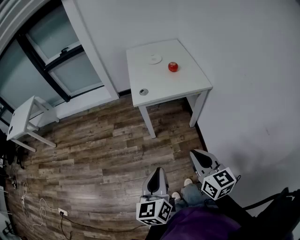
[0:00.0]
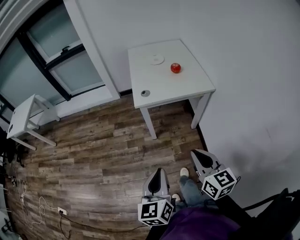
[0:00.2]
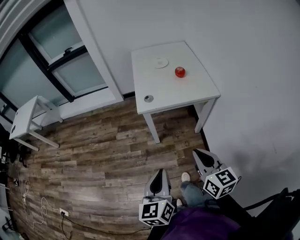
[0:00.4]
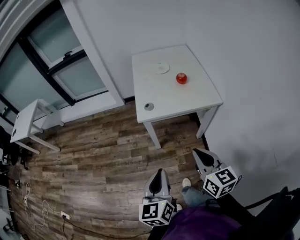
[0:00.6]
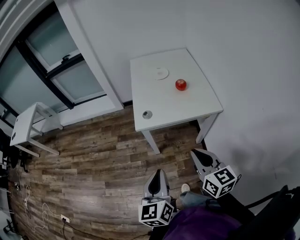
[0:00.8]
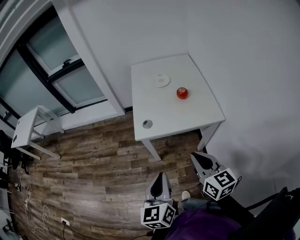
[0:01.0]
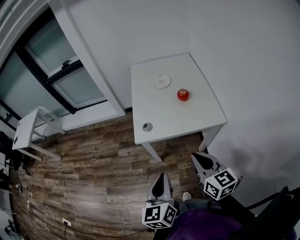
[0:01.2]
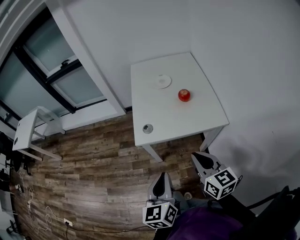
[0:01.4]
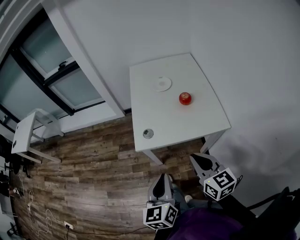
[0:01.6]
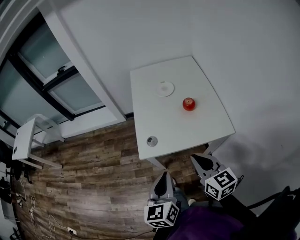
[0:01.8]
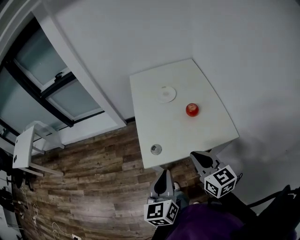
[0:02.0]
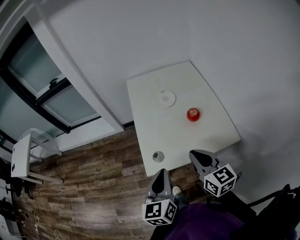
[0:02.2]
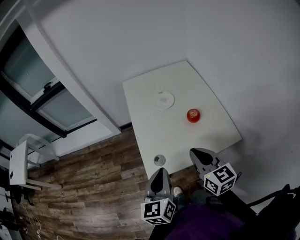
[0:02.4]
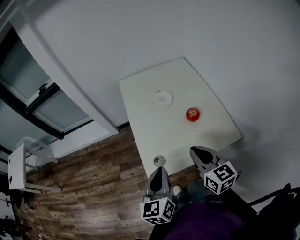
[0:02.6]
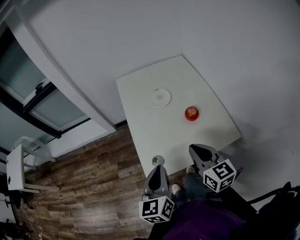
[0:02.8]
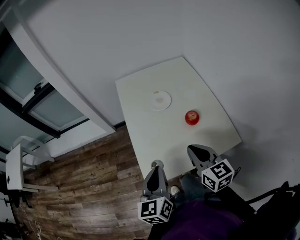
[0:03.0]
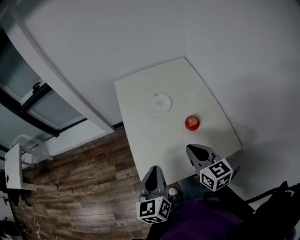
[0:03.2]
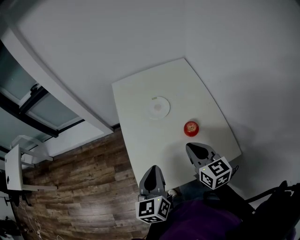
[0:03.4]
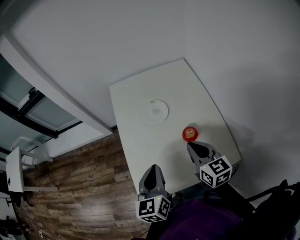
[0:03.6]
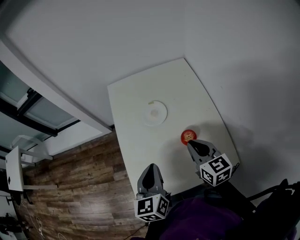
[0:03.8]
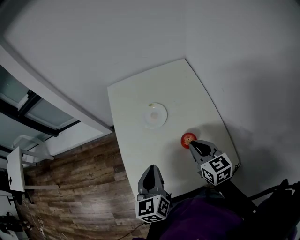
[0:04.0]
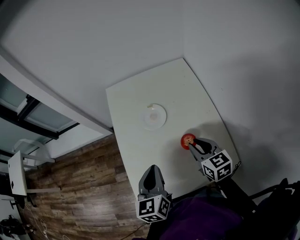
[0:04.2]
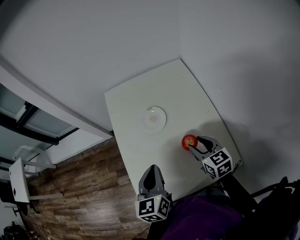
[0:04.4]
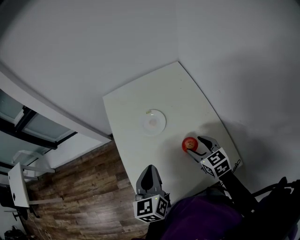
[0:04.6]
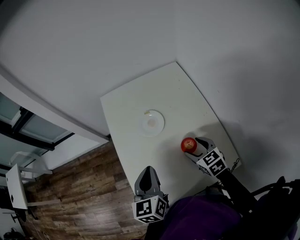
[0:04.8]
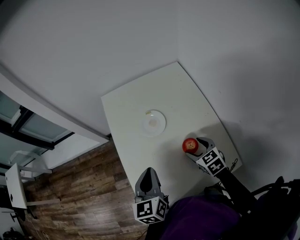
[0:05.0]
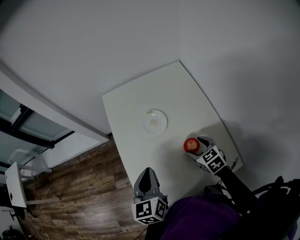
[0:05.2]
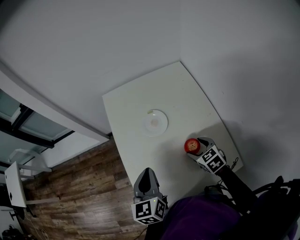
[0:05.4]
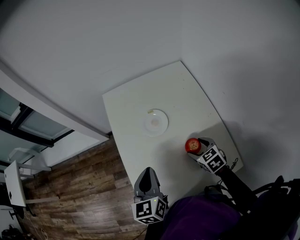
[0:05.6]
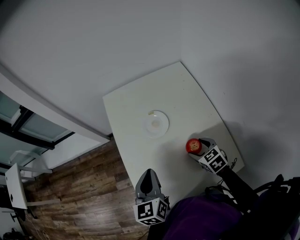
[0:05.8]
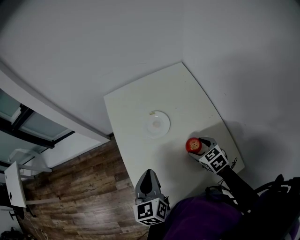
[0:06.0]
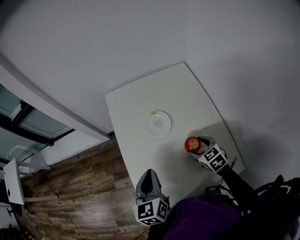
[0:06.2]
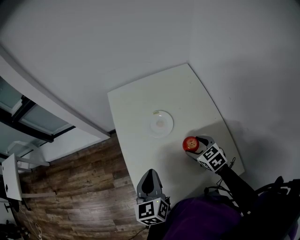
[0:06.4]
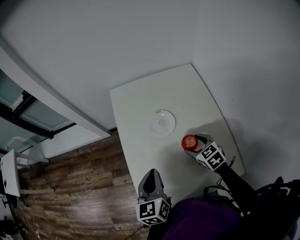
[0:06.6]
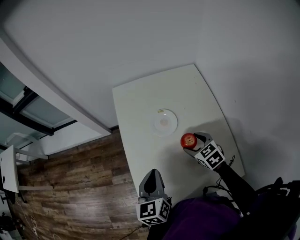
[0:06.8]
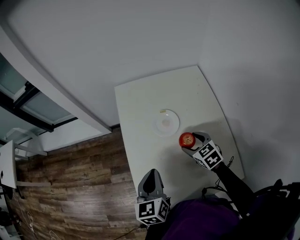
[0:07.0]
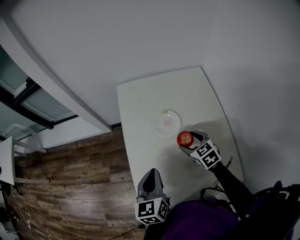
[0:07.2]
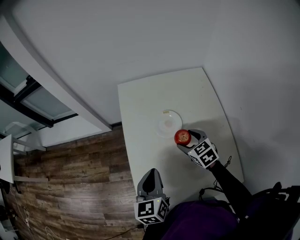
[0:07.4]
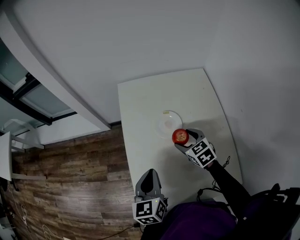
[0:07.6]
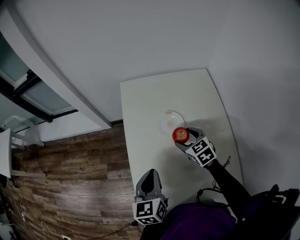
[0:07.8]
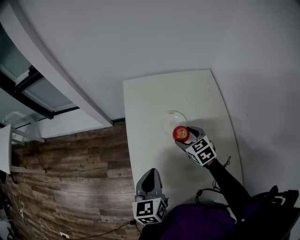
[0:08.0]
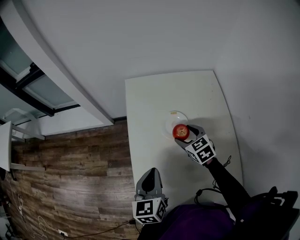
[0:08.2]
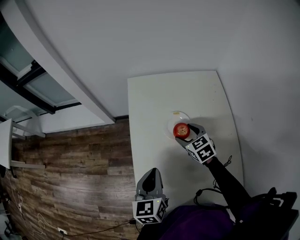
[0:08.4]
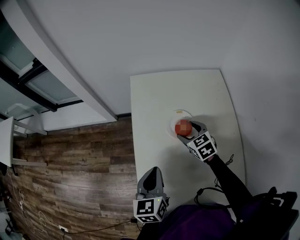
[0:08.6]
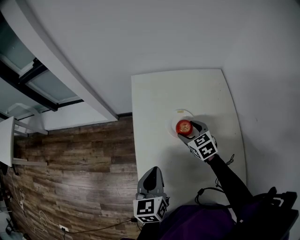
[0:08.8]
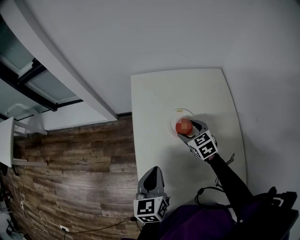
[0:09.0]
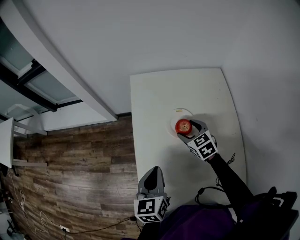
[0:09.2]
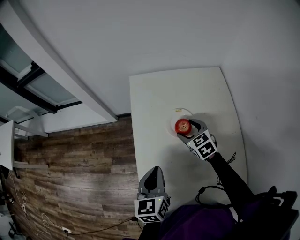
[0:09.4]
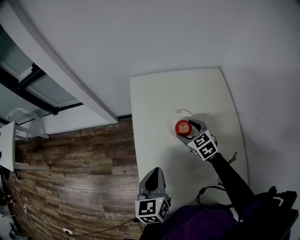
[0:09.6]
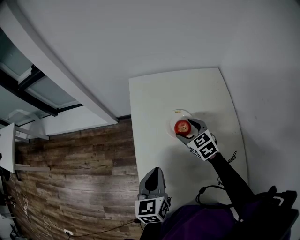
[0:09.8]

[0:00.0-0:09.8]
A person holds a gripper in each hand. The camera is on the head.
0:00.0 to 0:01.4: Both grippers travel together forward, about 25 cm.
0:01.4 to 0:02.8: The two grippers go some 25 cm forward.
0:02.8 to 0:04.2: The two grippers go approximately 20 cm forward and to the right.
0:04.2 to 0:05.6: The left gripper moves roughly 5 cm, while the right gripper goes approximately 10 cm downward, changes its angle by roughly 20 degrees, and opens.
0:05.6 to 0:07.0: The right gripper goes approximately 5 cm forward.
0:07.0 to 0:08.4: The right gripper is displaced forward and to the left by approximately 10 cm.
0:08.4 to 0:09.8: The grippers move only a little.

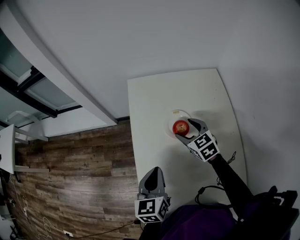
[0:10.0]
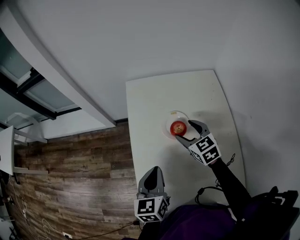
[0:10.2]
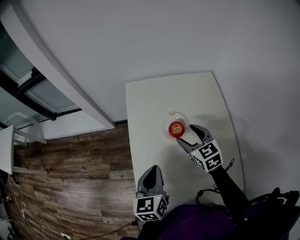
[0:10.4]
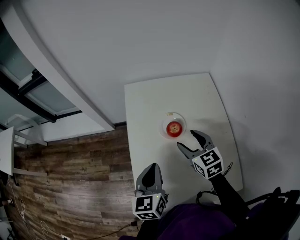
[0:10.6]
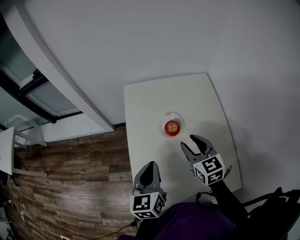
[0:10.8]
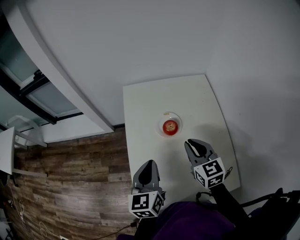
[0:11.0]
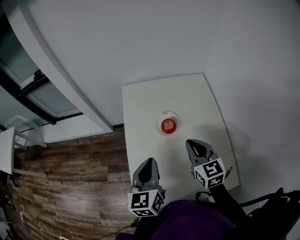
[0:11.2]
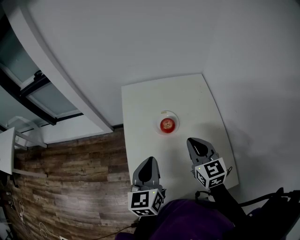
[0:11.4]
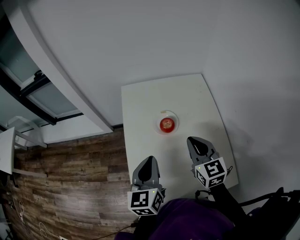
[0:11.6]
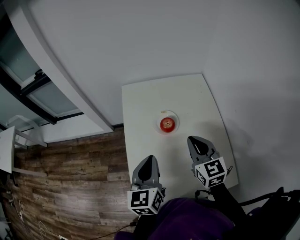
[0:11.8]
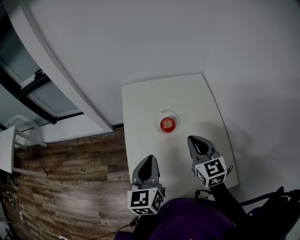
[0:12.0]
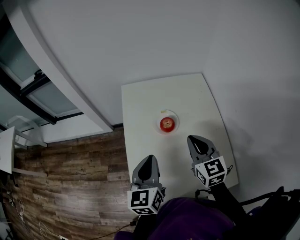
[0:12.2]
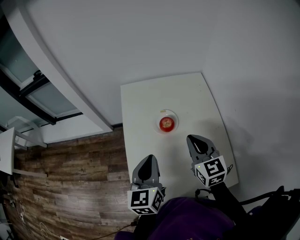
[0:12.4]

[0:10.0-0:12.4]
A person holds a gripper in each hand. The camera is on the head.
0:10.0 to 0:11.2: The left gripper goes roughly 5 cm upward, while the right gripper is displaced backward and upward by roughly 15 cm, turns by approximately 20 degrees, and closes up.
0:11.2 to 0:12.4: The grippers move only a little.

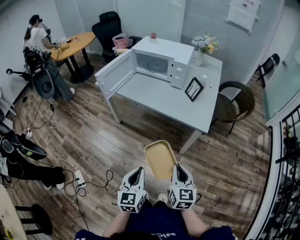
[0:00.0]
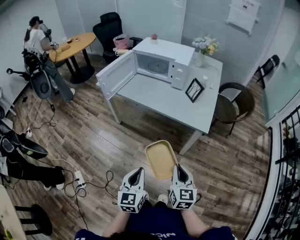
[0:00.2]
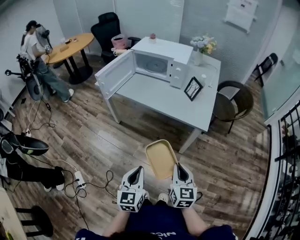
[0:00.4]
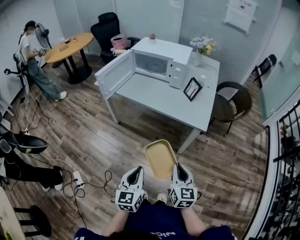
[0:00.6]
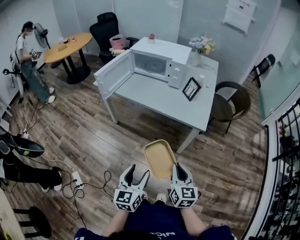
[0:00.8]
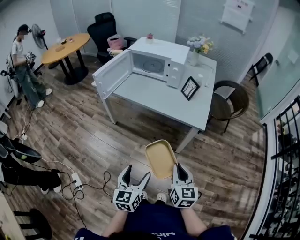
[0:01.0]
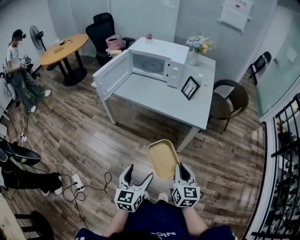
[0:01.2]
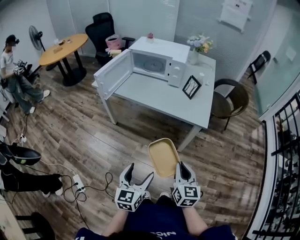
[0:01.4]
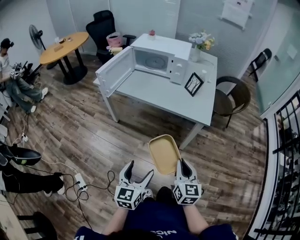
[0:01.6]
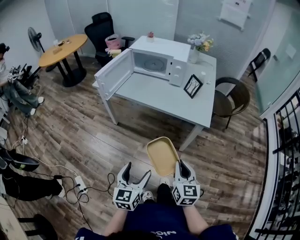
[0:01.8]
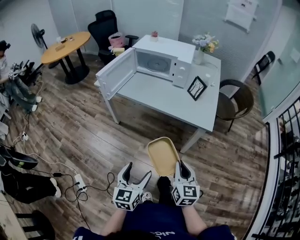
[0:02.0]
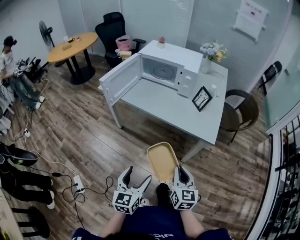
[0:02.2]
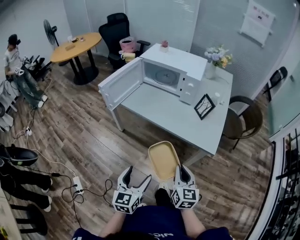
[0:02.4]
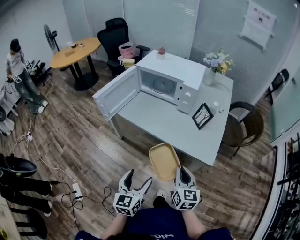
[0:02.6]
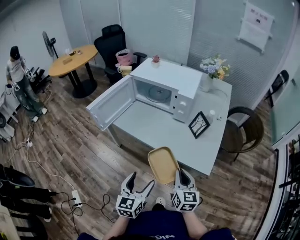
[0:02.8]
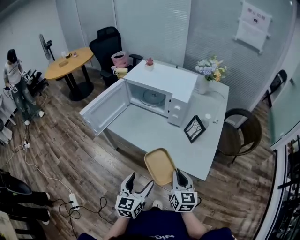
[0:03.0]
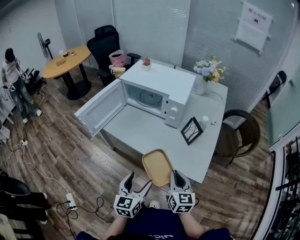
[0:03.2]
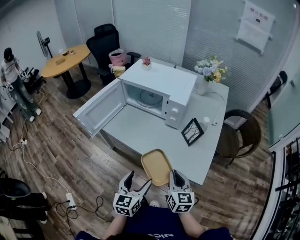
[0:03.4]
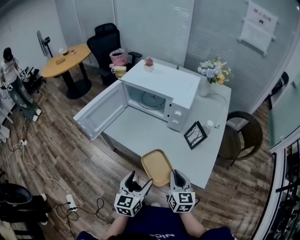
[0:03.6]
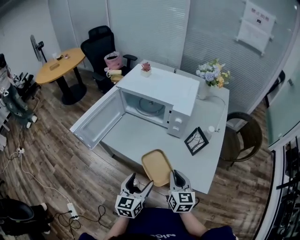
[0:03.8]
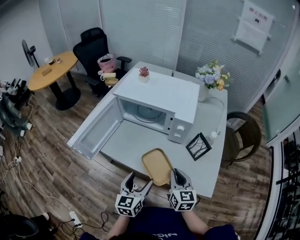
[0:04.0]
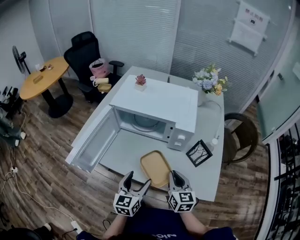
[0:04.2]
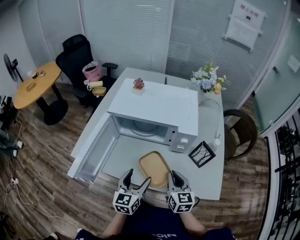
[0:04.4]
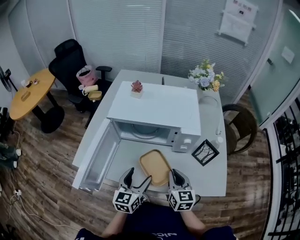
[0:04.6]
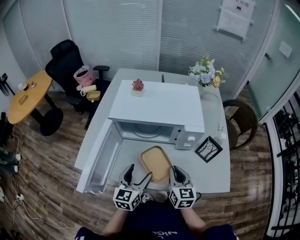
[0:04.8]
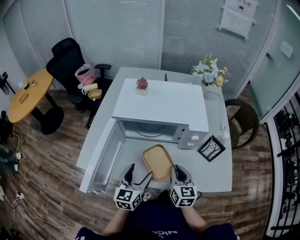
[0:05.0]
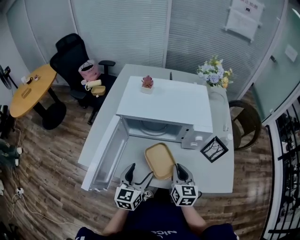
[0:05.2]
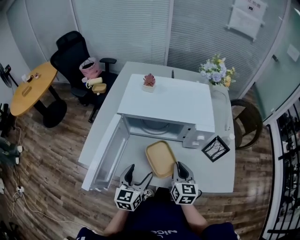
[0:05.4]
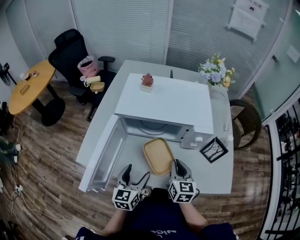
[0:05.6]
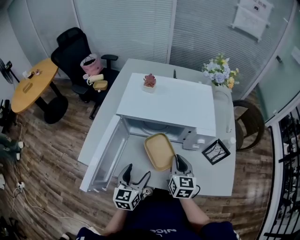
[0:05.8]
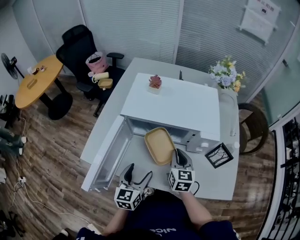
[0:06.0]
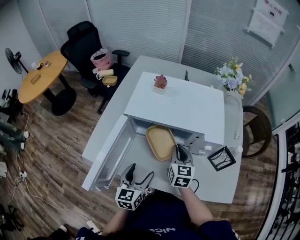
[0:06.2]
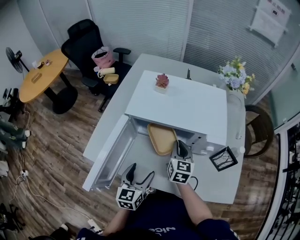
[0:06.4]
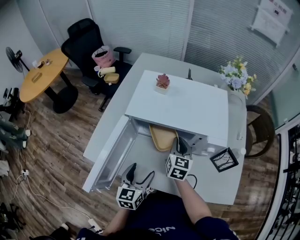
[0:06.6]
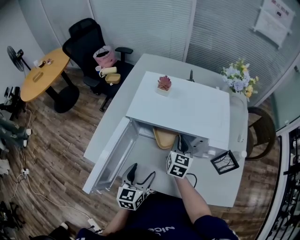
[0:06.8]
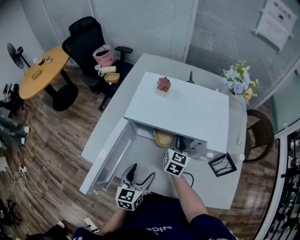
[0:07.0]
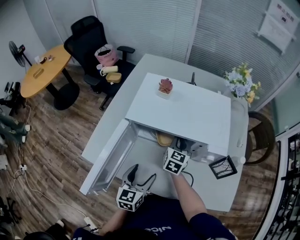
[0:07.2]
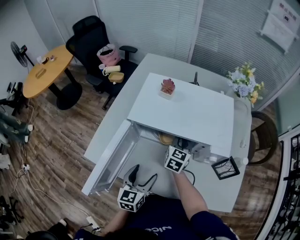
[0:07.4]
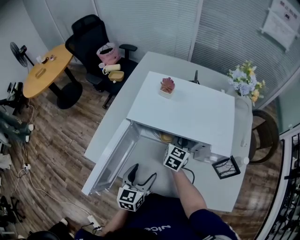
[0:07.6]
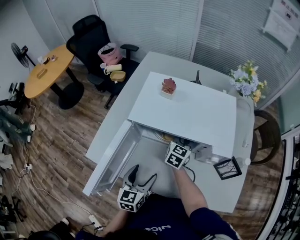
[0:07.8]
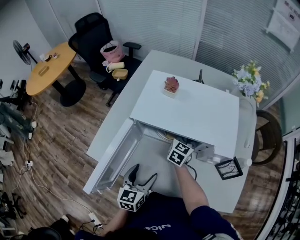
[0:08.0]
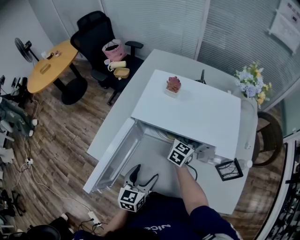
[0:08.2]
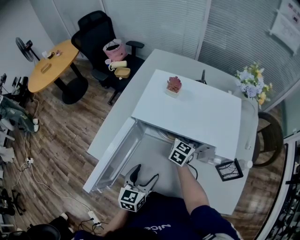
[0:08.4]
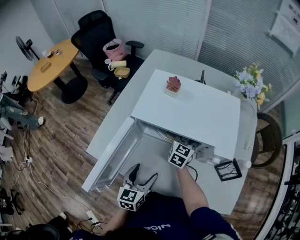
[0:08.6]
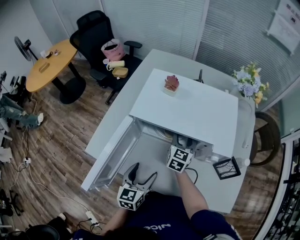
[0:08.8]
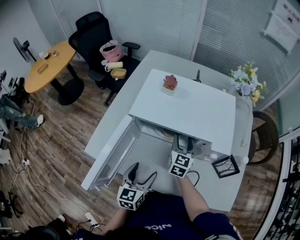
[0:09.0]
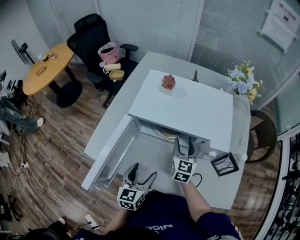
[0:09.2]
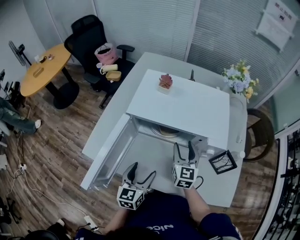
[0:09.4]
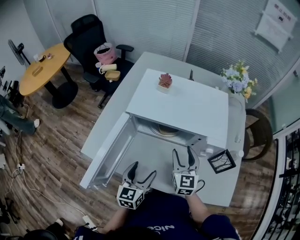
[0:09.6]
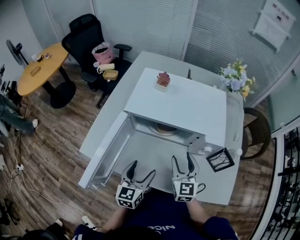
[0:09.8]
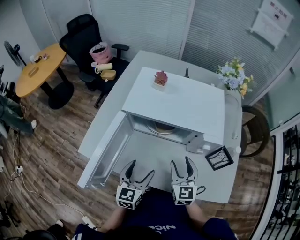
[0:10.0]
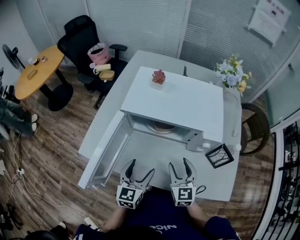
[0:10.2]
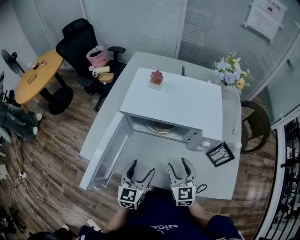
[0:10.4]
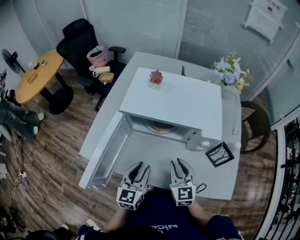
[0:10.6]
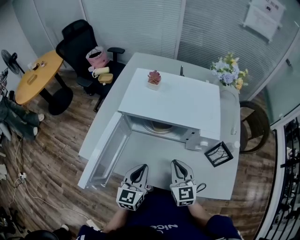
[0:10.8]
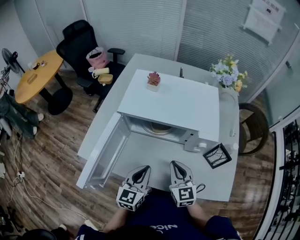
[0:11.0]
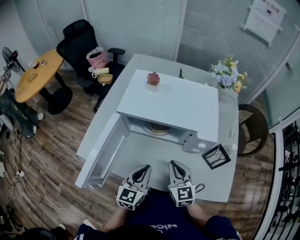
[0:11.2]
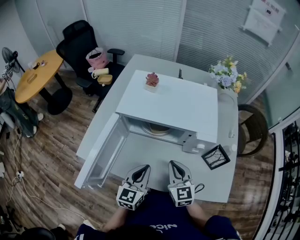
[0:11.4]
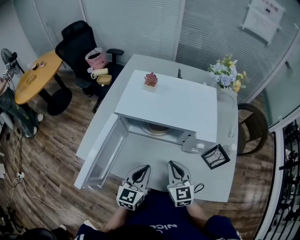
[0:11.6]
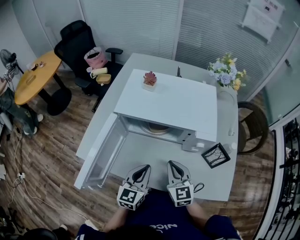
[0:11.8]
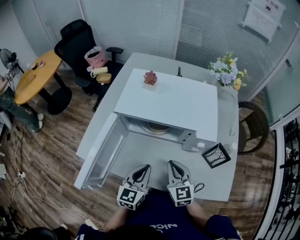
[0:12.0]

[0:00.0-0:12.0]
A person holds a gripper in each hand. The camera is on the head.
0:00.0 to 0:01.6: The left gripper opens up.
0:01.6 to 0:03.0: The grippers both shift forward by roughly 25 cm.
0:03.0 to 0:04.4: The left gripper goes some 25 cm forward. Meanwhile the right gripper moves forward and to the left, about 25 cm.
0:04.4 to 0:06.0: The left gripper heads to the left, covering some 10 cm, while the right gripper heads forward and to the left, covering roughly 15 cm.
0:06.0 to 0:07.6: The right gripper goes approximately 15 cm forward.
0:07.6 to 0:09.0: The right gripper opens up.
0:09.0 to 0:10.4: The right gripper heads backward, covering roughly 15 cm.
0:10.4 to 0:12.0: The left gripper closes its fingers. Meanwhile the right gripper closes up.
